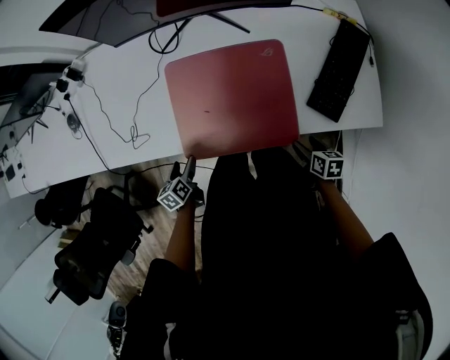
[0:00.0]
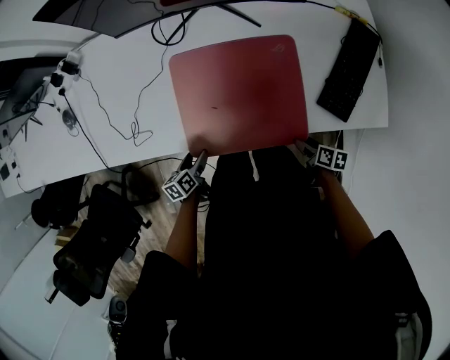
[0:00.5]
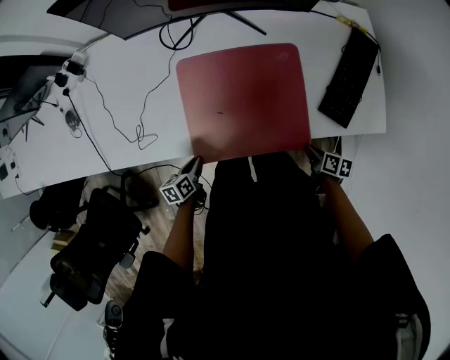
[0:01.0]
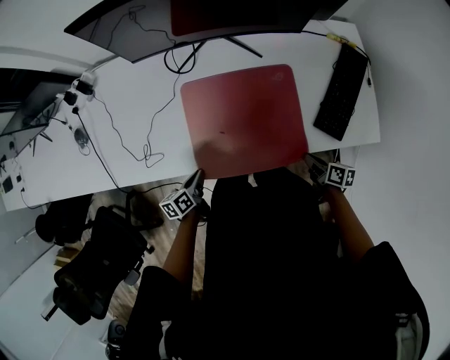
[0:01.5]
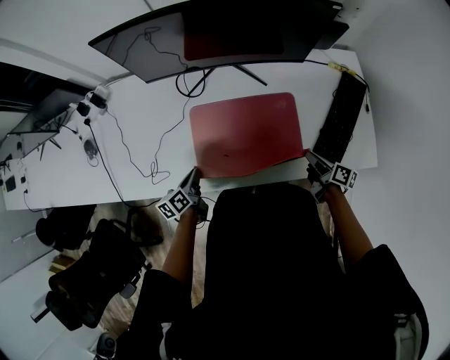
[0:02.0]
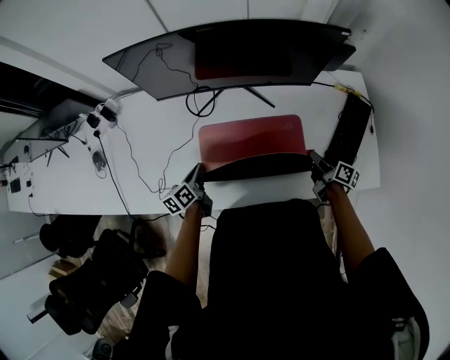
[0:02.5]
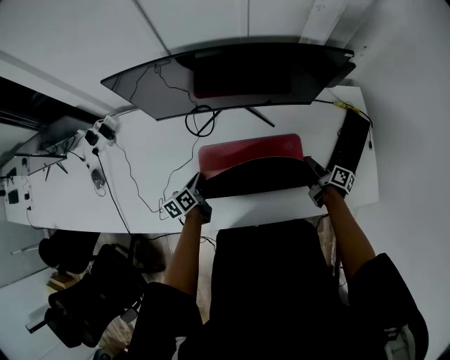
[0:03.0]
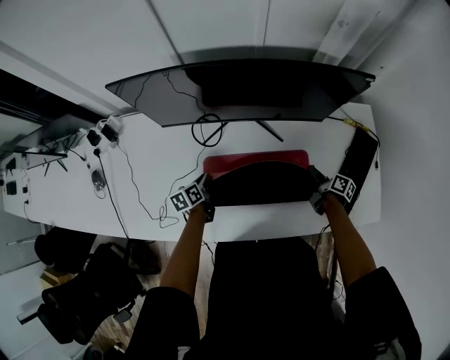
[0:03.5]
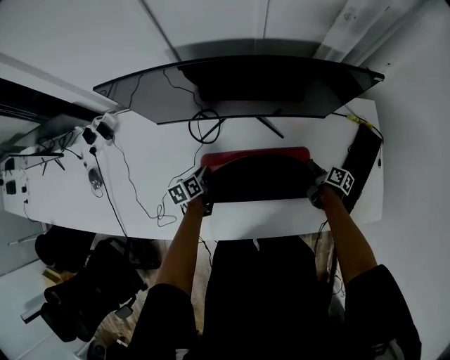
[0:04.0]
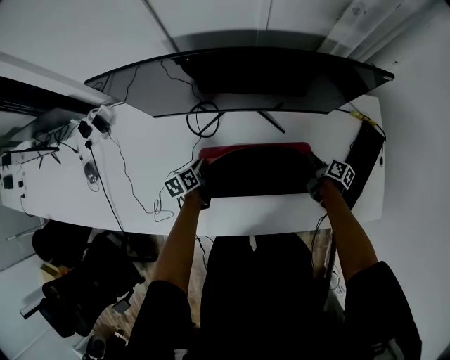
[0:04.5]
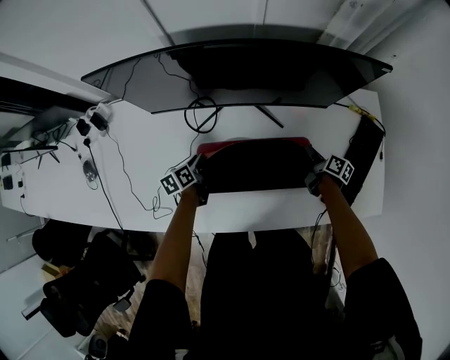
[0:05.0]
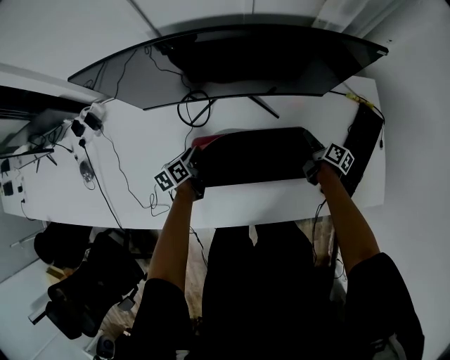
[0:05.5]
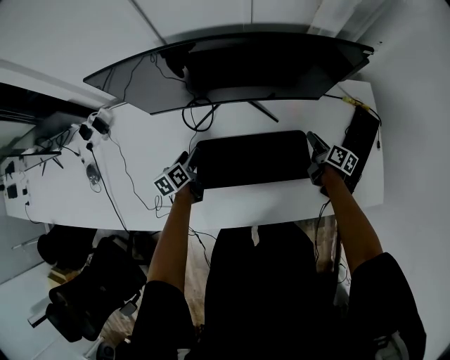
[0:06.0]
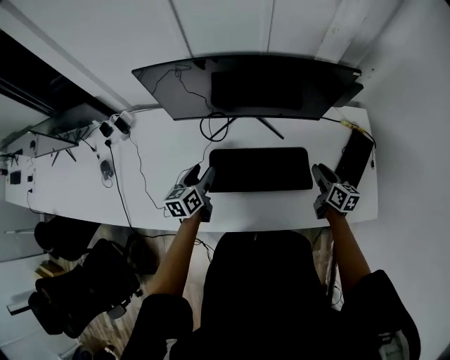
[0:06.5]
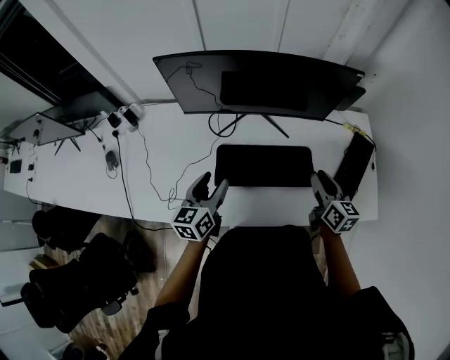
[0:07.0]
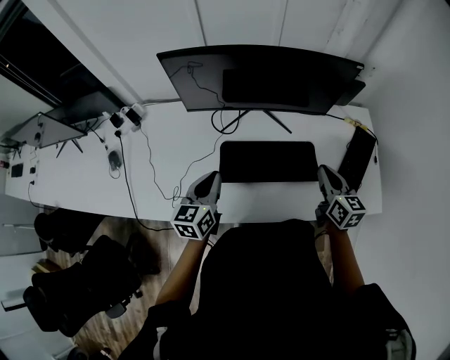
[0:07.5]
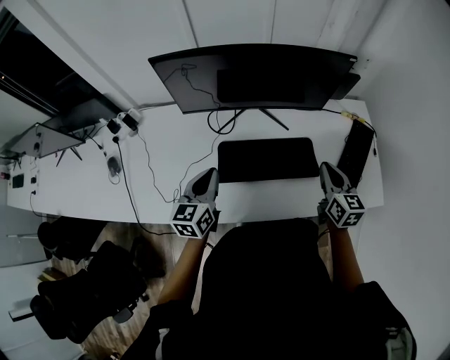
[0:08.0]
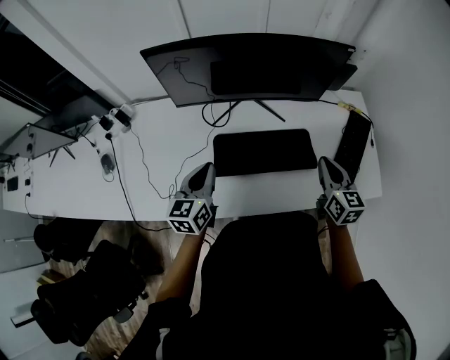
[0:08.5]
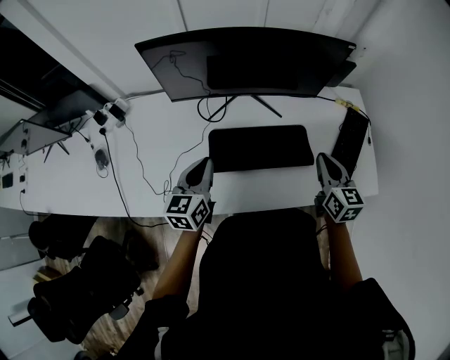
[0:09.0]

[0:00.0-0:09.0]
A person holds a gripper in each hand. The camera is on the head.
0:00.0 to 0:02.0: Both grippers travel together forward and upward, about 15 cm. The right gripper turns by approximately 40 degrees, and closes up. The left gripper rotates roughly 20 degrees, and closes.
0:02.0 to 0:04.5: Both grippers travel together forward, some 20 cm.
0:04.5 to 0:07.0: Both grippers travel together upward and backward, about 30 cm. The left gripper swivels approximately 40 degrees, and opens; the right gripper rolls counterclockwise, seen from behind, by approximately 40 degrees.
0:07.0 to 0:09.0: The right gripper closes, while the left gripper closes up.

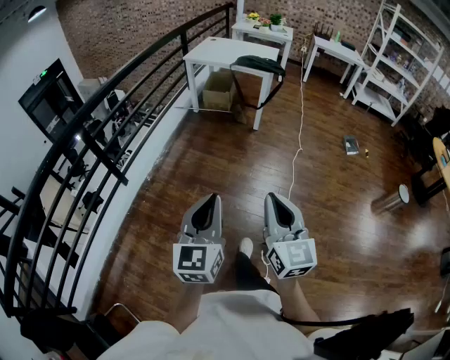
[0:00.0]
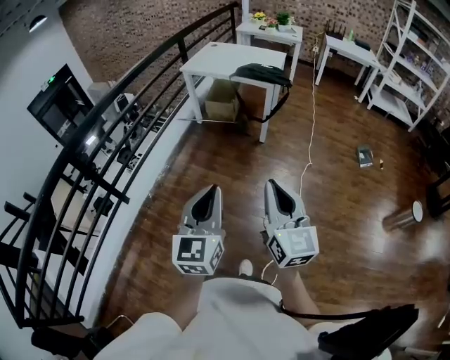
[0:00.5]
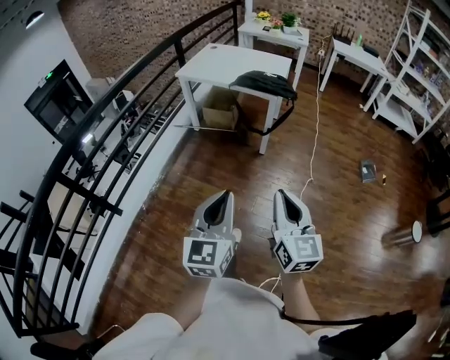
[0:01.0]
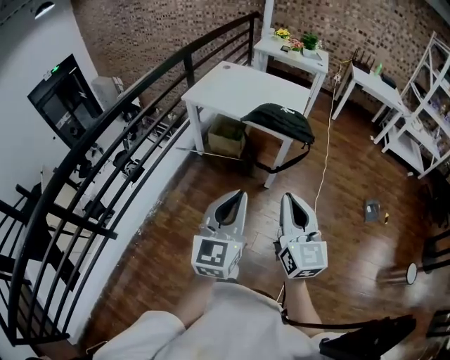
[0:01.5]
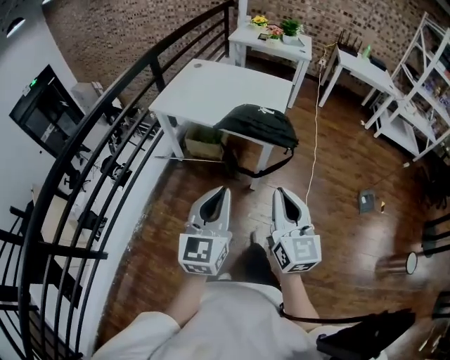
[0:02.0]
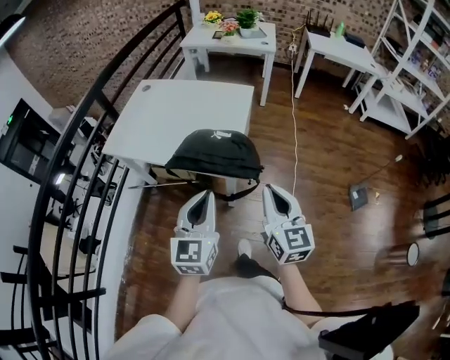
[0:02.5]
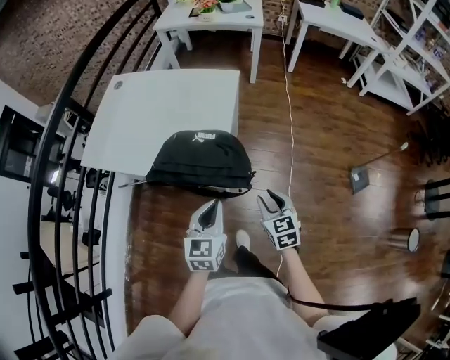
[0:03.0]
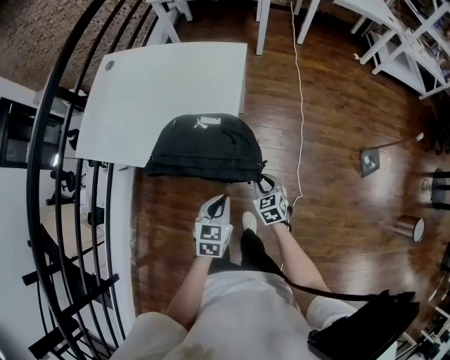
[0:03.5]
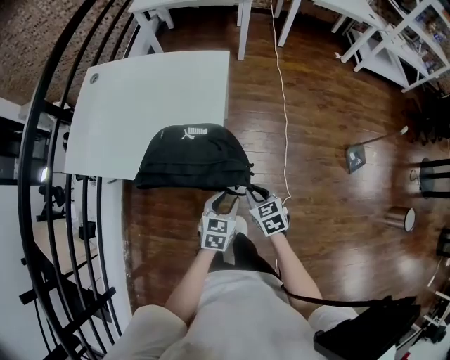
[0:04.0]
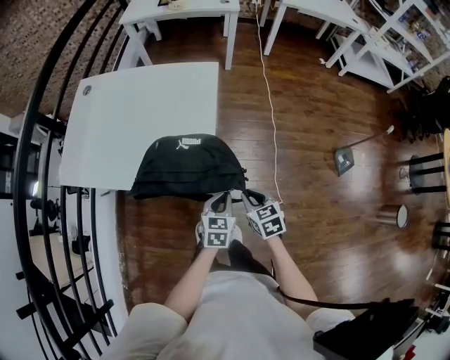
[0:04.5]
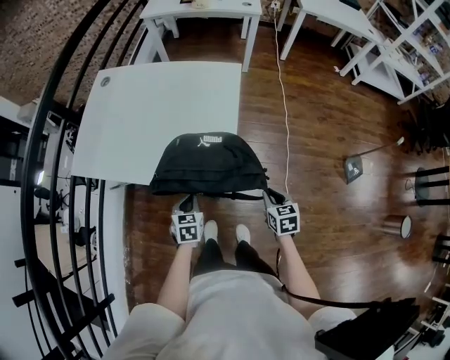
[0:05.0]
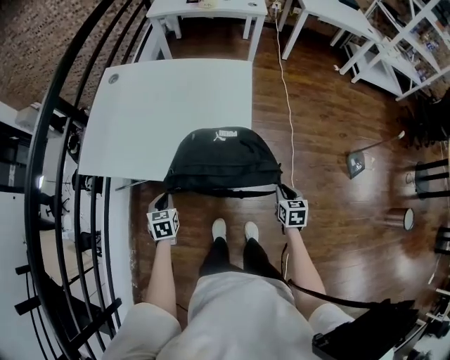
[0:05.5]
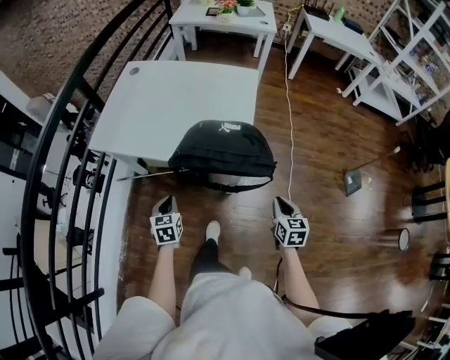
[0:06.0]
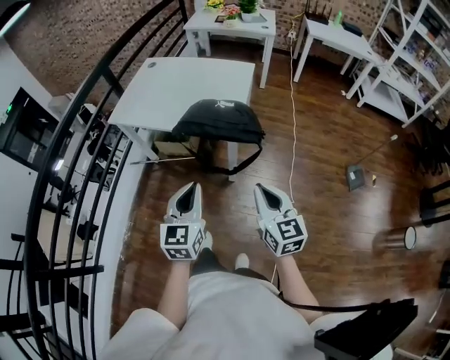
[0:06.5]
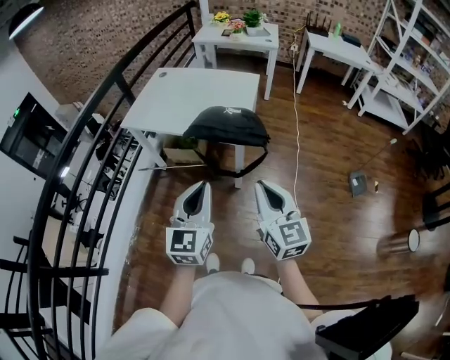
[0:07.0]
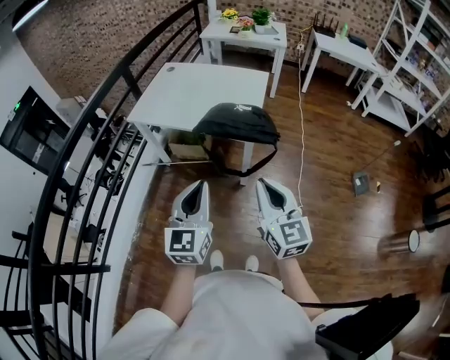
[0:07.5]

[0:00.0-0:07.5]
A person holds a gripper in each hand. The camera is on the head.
0:00.0 to 0:02.0: Both grippers are carried forward, about 80 cm.
0:02.0 to 0:04.0: The grippers both shift forward, downward and to the right by about 50 cm. The left gripper points its fingers about 40 degrees further downward, and opens. Meanwhile the right gripper points its fingers approximately 50 degrees further downward.
0:04.0 to 0:05.5: The right gripper changes its angle by approximately 20 degrees, while the left gripper shifts some 35 cm to the left, rotates approximately 20 degrees, and closes its fingers.
0:05.5 to 0:07.5: The right gripper travels upward, backward and to the left by roughly 50 cm, and points its fingers some 40 degrees further upward, while the left gripper goes roughly 50 cm backward and upward, and points its fingers approximately 50 degrees further upward.

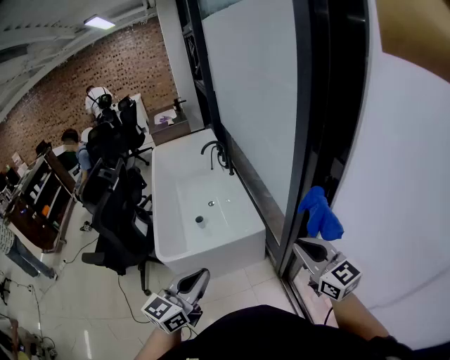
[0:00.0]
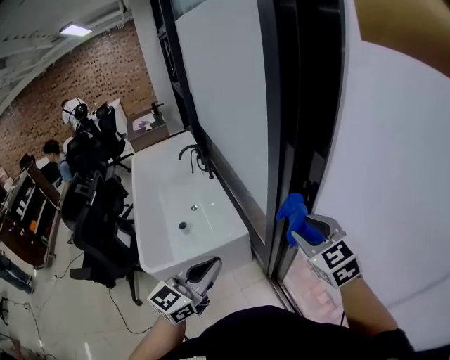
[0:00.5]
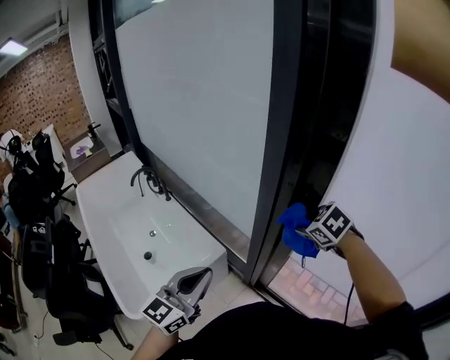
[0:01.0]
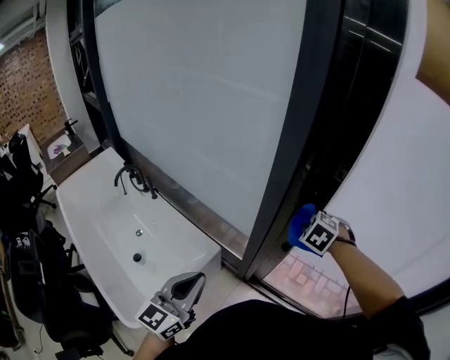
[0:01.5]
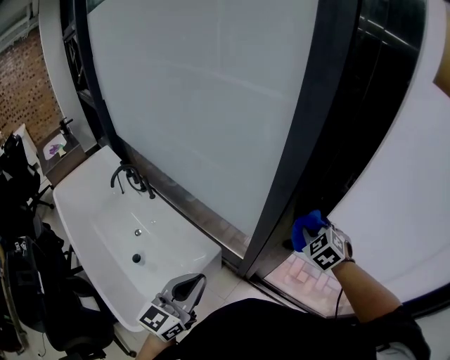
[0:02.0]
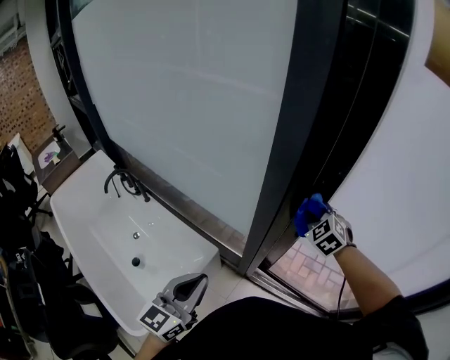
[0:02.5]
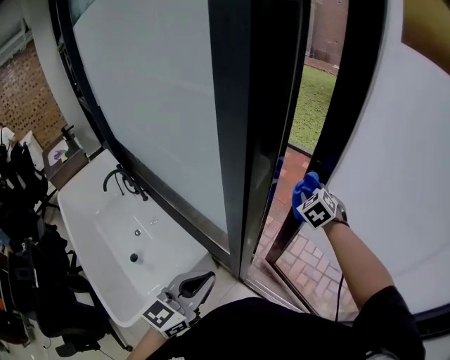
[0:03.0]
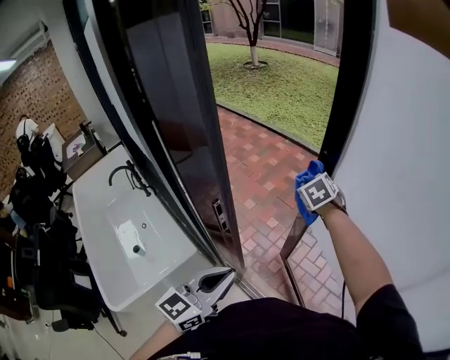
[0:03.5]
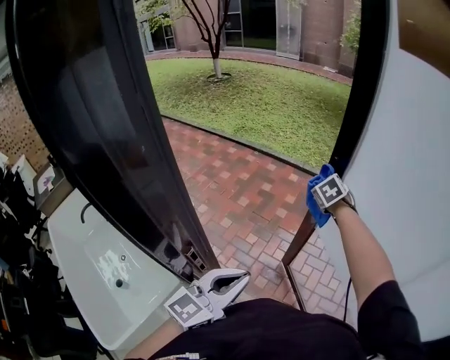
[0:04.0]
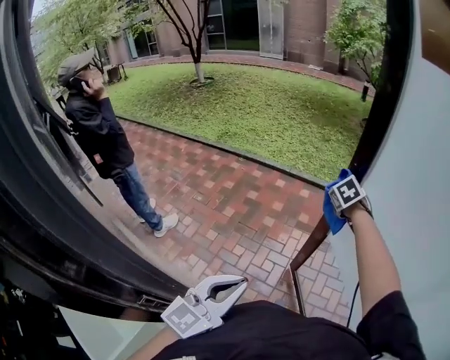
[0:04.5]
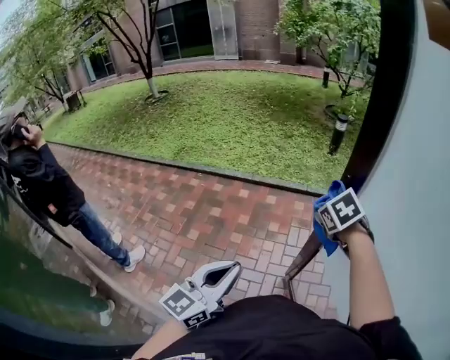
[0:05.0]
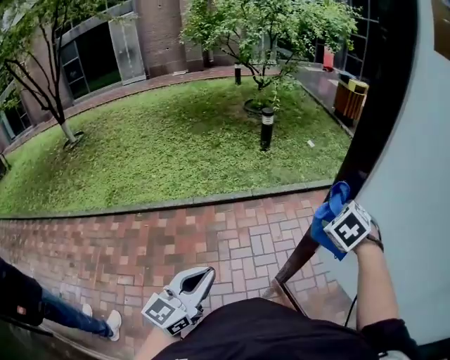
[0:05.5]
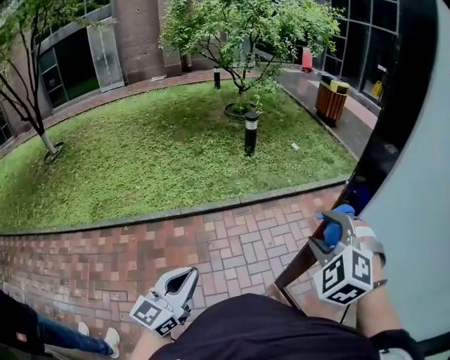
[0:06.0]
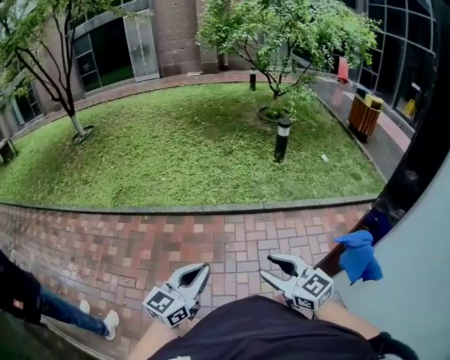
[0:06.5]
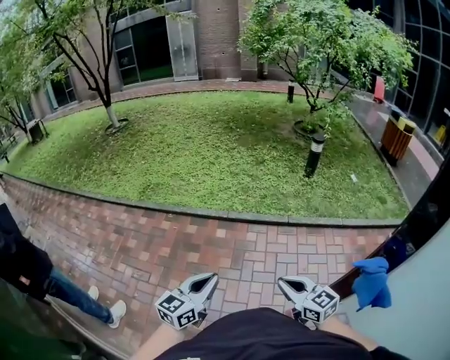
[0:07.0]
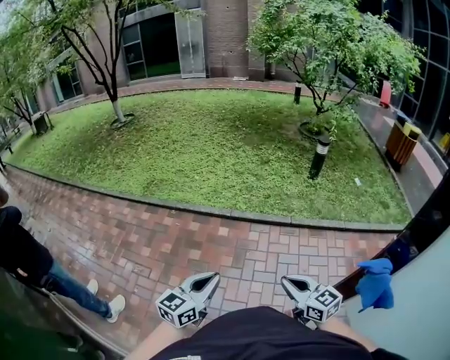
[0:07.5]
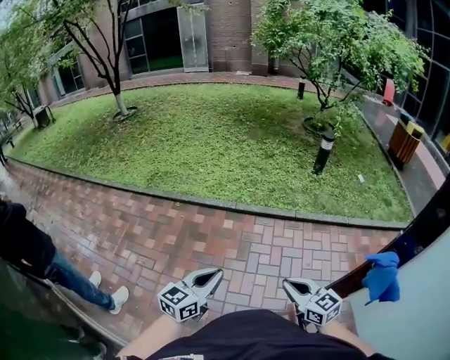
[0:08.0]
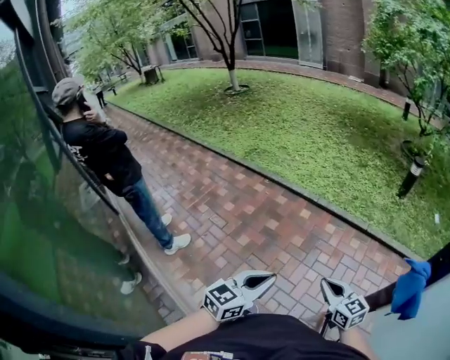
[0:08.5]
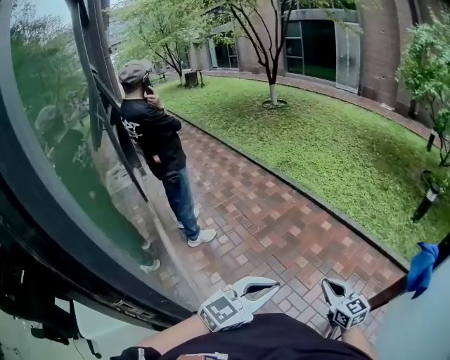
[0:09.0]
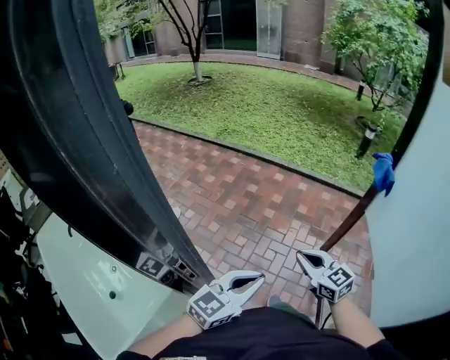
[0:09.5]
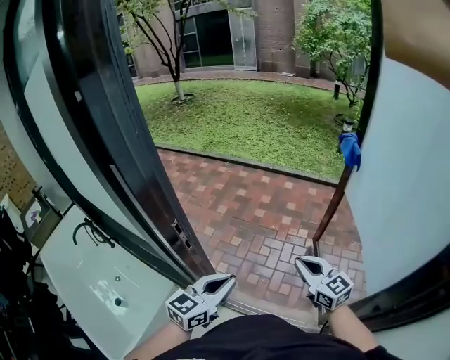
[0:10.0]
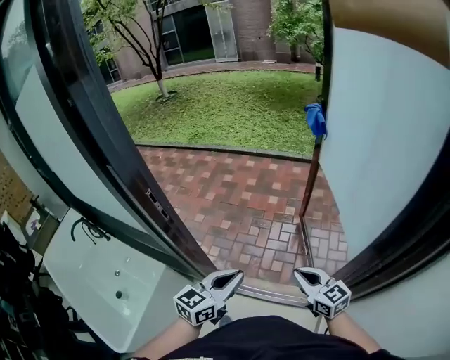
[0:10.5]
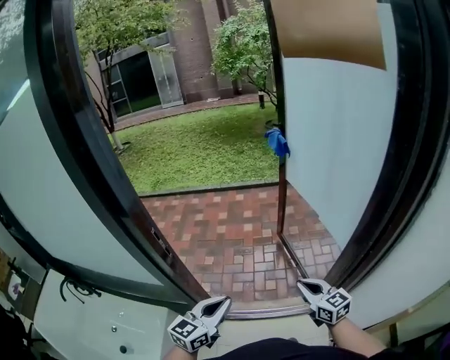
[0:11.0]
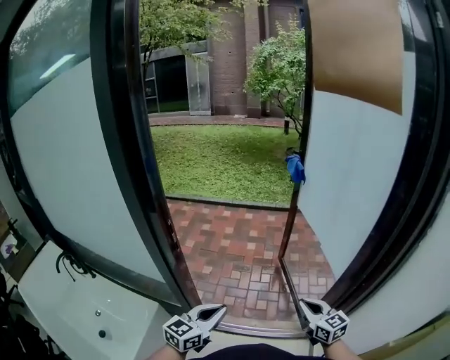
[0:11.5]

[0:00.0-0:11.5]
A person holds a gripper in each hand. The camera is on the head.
0:00.0 to 0:02.0: The left gripper shifts by about 25 cm, and swivels roughly 30 degrees; the right gripper ends up roughly 25 cm from where it was, tips its fingers downward by some 40 degrees, and opens, then closes once more.
0:02.0 to 0:04.0: The two grippers travel together, forward and to the right, some 50 cm. The left gripper changes its angle by approximately 20 degrees; the right gripper rotates approximately 20 degrees.
0:04.0 to 0:06.0: The left gripper changes place by roughly 60 cm, and turns by about 30 degrees. Meanwhile the right gripper shifts by some 30 cm, rotates about 30 degrees, and opens up.
0:06.0 to 0:07.5: The right gripper travels downward by approximately 20 cm, rotates roughly 70 degrees, and closes, while the left gripper heads downward, covering about 10 cm, and swivels about 20 degrees.
0:07.5 to 0:09.5: The pair of grippers is taken backward, about 60 cm.
0:09.5 to 0:11.5: The right gripper moves backward and to the right, some 40 cm, and turns by about 30 degrees. Meanwhile the left gripper is displaced backward by about 30 cm.
